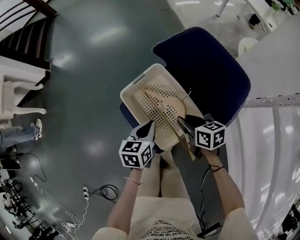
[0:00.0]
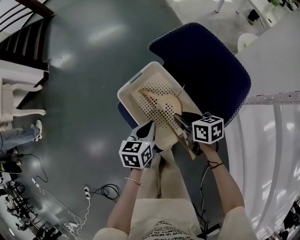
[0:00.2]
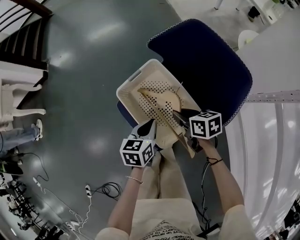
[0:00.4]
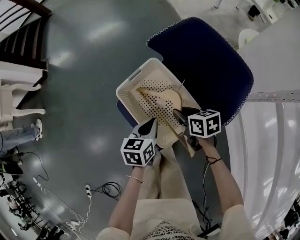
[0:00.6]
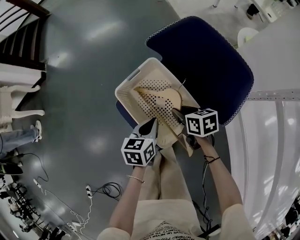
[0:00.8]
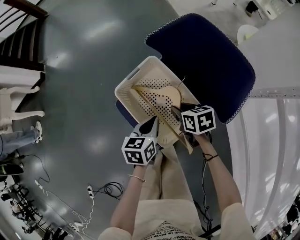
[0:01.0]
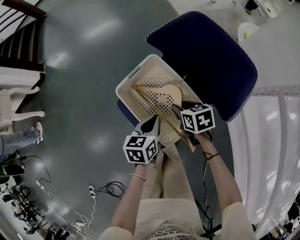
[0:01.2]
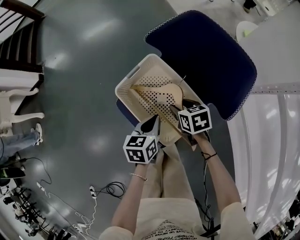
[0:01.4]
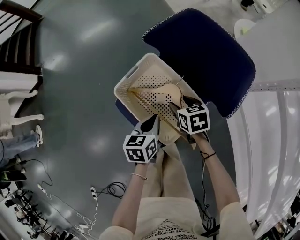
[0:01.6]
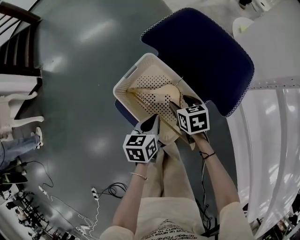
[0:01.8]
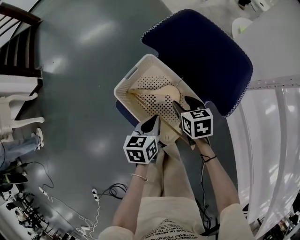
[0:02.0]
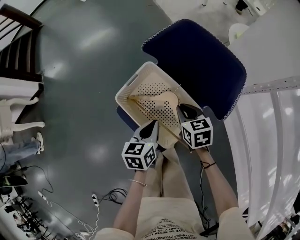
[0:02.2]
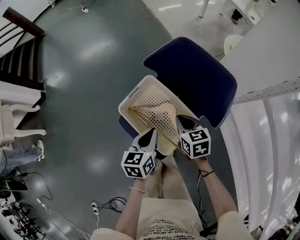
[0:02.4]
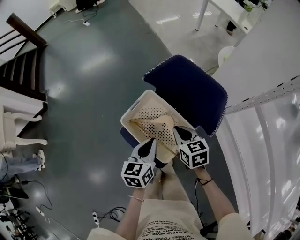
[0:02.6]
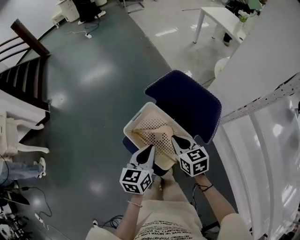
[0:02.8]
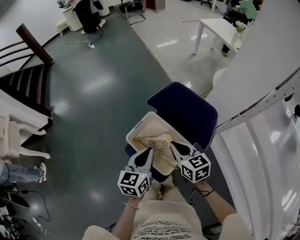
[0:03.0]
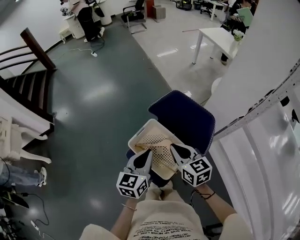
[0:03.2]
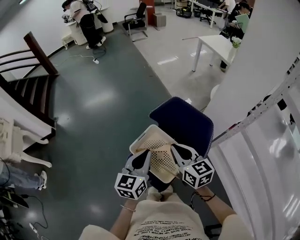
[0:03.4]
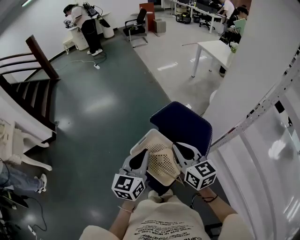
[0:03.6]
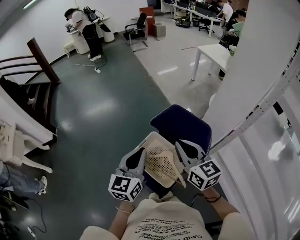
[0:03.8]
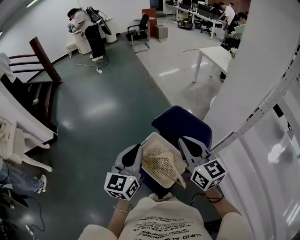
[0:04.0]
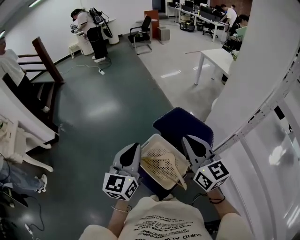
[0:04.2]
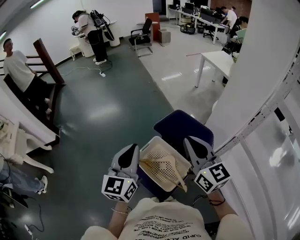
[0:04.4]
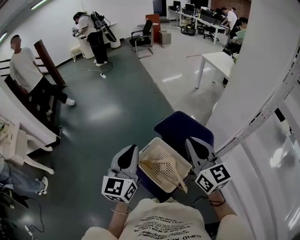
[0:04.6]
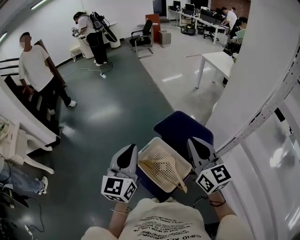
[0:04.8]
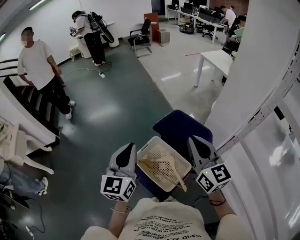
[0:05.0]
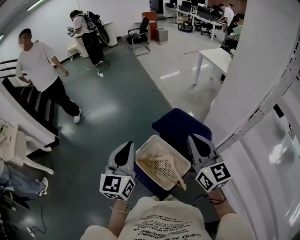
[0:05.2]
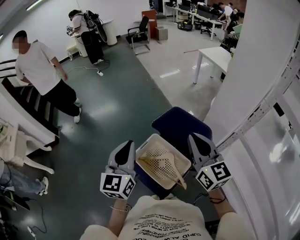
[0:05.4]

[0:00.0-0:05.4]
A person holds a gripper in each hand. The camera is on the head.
0:00.0 to 0:01.4: The right gripper is displaced downward by approximately 5 cm, changes its angle by some 20 degrees, and opens.
0:01.4 to 0:02.8: Both grippers move upward, roughly 20 cm. The right gripper turns by approximately 20 degrees, and closes.
0:02.8 to 0:04.0: The two grippers go about 25 cm upward. The left gripper swivels roughly 30 degrees; the right gripper tips its fingers upward by roughly 30 degrees.
0:04.0 to 0:05.4: The grippers move only a little.

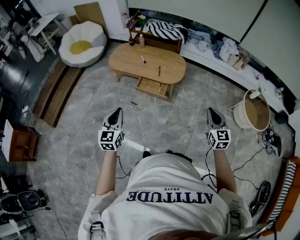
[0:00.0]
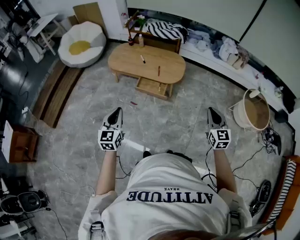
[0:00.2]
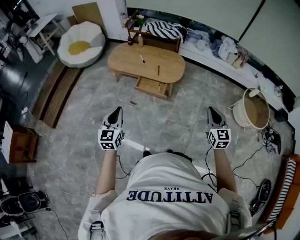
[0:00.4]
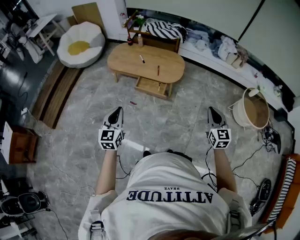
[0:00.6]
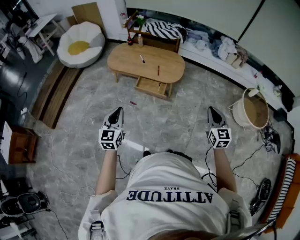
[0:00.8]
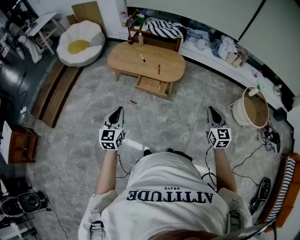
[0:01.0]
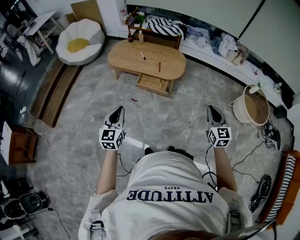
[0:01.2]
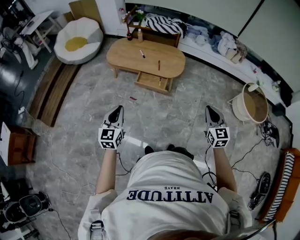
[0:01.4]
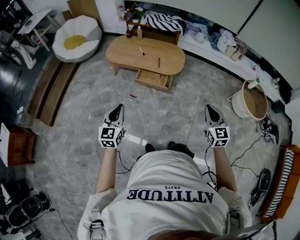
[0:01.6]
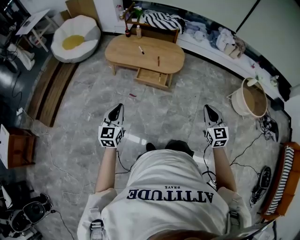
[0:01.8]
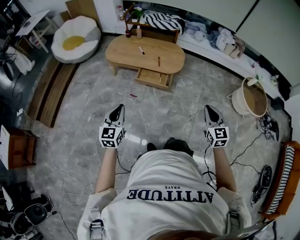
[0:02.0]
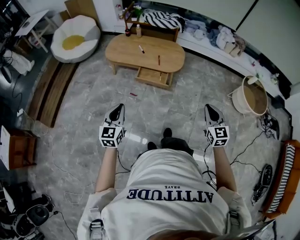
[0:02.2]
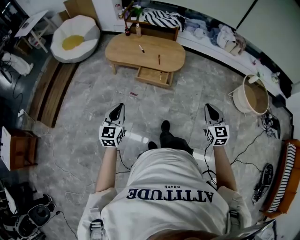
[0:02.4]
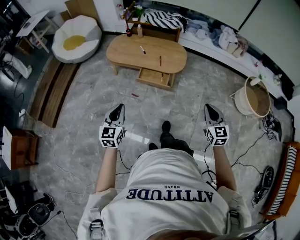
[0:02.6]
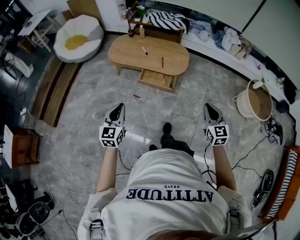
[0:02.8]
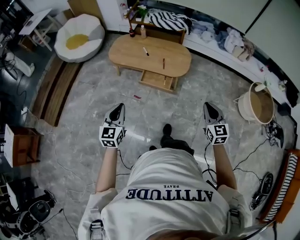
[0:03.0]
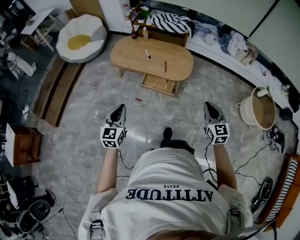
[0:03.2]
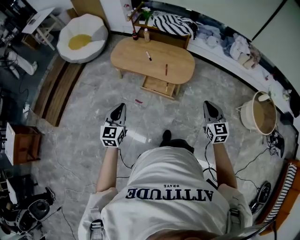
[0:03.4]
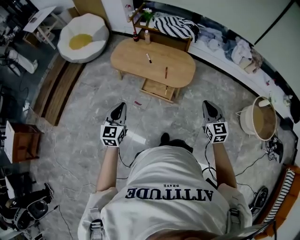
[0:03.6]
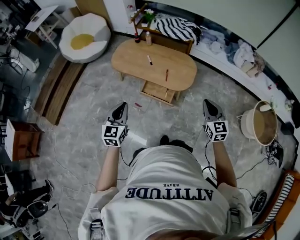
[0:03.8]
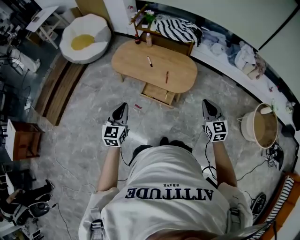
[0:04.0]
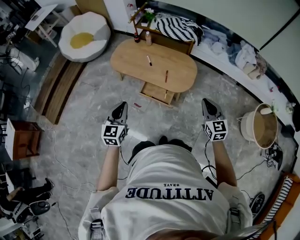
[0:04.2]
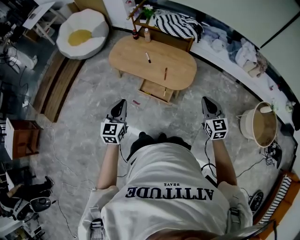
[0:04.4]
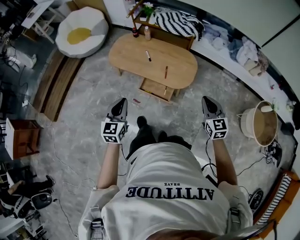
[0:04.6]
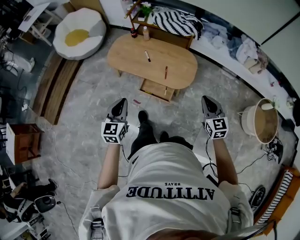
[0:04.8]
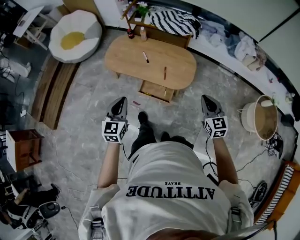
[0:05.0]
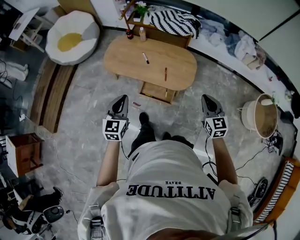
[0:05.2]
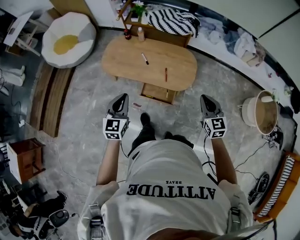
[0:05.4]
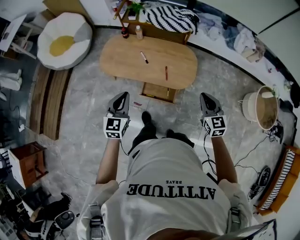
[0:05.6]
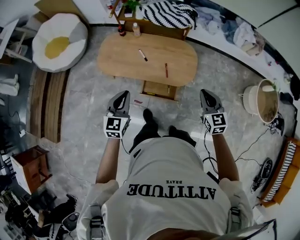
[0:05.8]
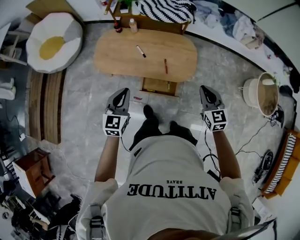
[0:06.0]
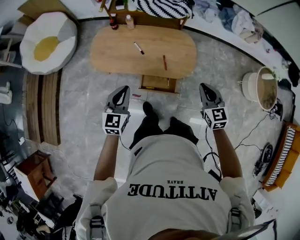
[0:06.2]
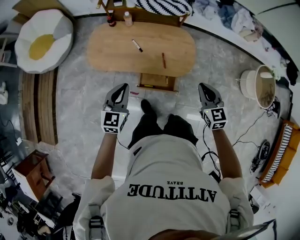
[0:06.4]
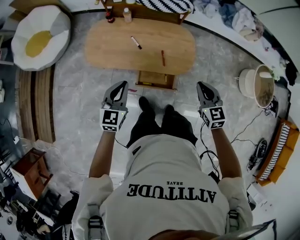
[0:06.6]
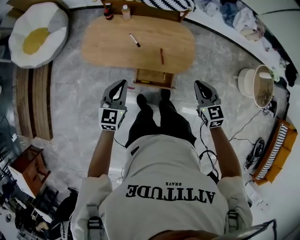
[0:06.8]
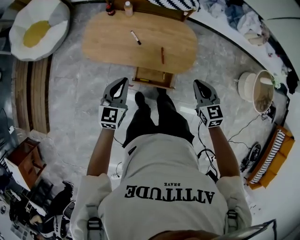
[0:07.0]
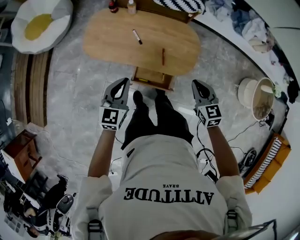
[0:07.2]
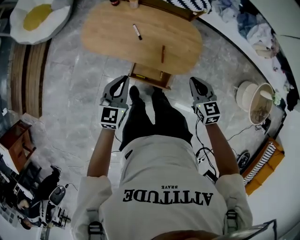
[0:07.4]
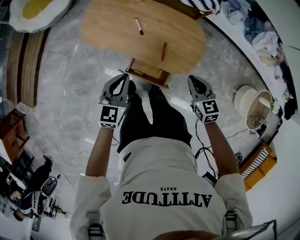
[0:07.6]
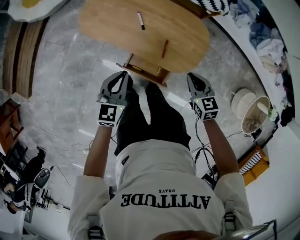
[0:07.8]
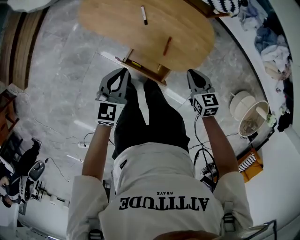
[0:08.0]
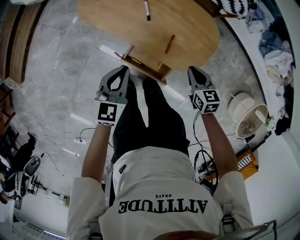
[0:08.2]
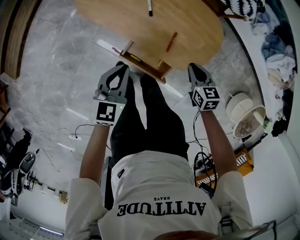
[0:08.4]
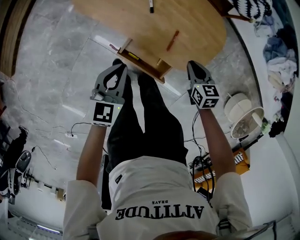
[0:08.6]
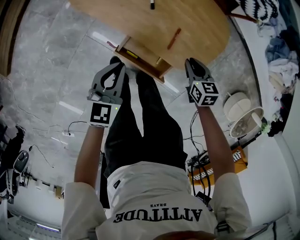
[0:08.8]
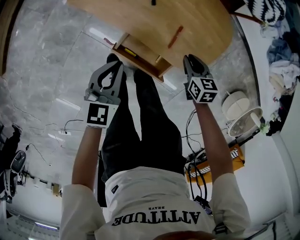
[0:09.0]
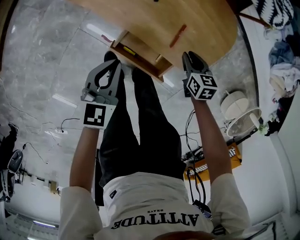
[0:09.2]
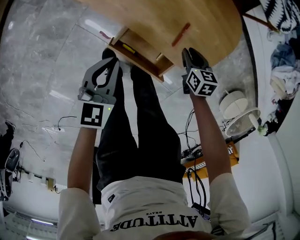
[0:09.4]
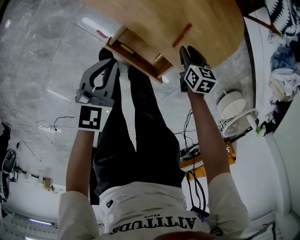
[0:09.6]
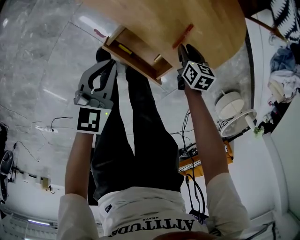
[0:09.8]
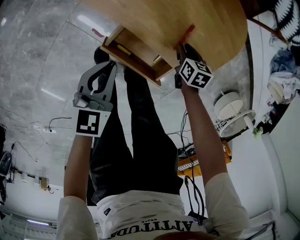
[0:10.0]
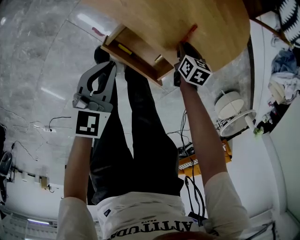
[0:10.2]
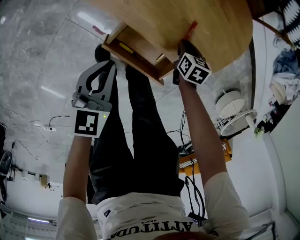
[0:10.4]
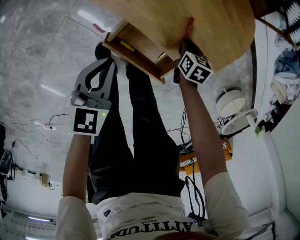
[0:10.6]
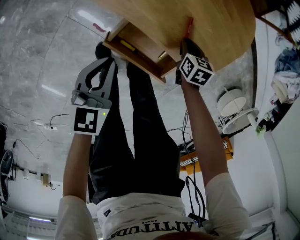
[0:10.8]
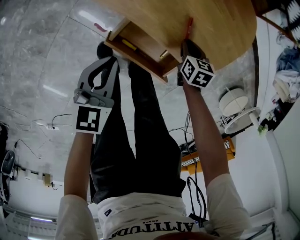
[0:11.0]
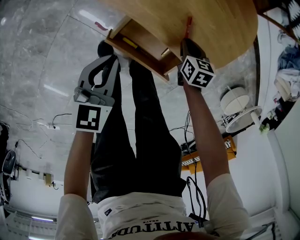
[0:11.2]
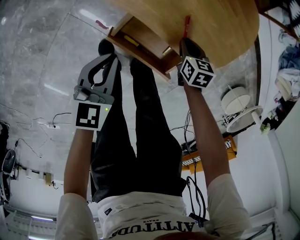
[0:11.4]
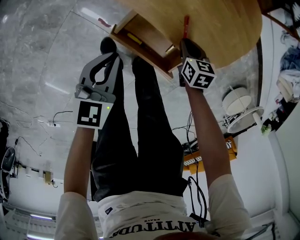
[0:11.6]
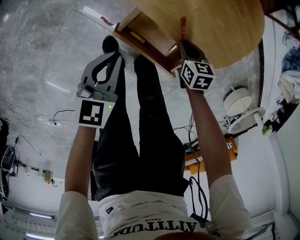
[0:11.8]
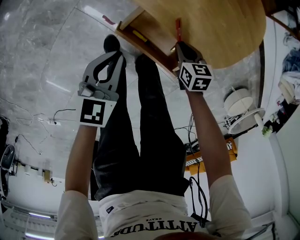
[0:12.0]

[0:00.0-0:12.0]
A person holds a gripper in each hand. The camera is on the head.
0:00.0 to 0:01.6: The right gripper shifts some 10 cm to the left, while the left gripper goes approximately 5 cm to the left.
0:01.6 to 0:03.0: Both grippers travel together forward, about 10 cm.
0:03.0 to 0:04.4: Both grippers move forward, approximately 25 cm.
0:04.4 to 0:06.0: Both grippers move forward and to the left, roughly 25 cm.
0:06.0 to 0:07.6: The two grippers go roughly 15 cm downward and forward. The right gripper turns by about 20 degrees.
0:07.6 to 0:09.0: Both grippers move downward, roughly 25 cm.
0:09.0 to 0:10.4: The two grippers go some 15 cm downward.
0:10.4 to 0:12.0: The right gripper is displaced backward and to the left by some 10 cm. The left gripper moves approximately 5 cm.

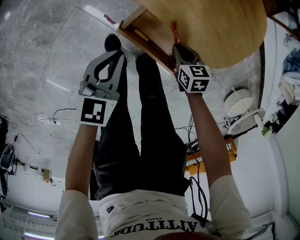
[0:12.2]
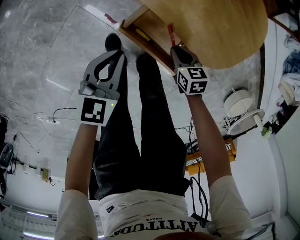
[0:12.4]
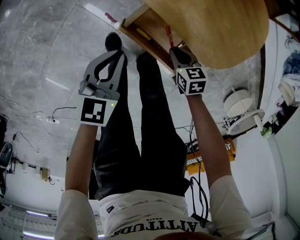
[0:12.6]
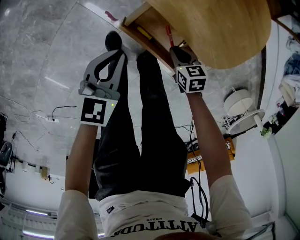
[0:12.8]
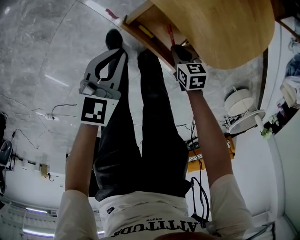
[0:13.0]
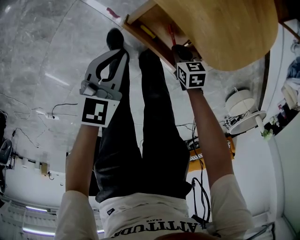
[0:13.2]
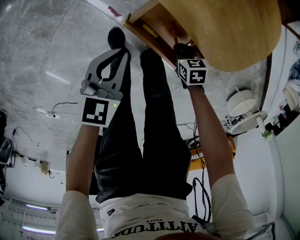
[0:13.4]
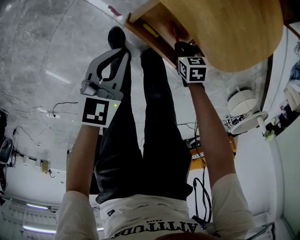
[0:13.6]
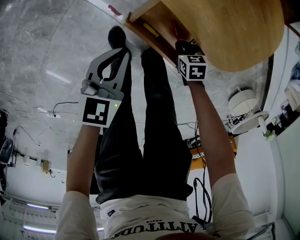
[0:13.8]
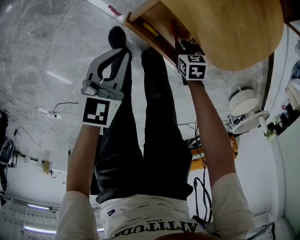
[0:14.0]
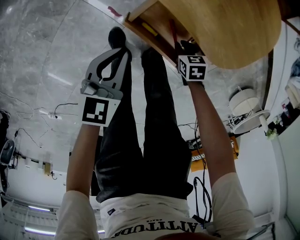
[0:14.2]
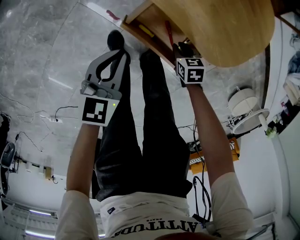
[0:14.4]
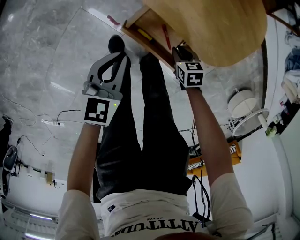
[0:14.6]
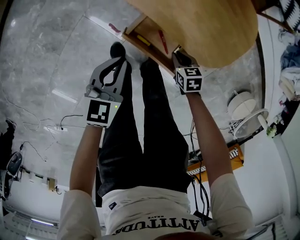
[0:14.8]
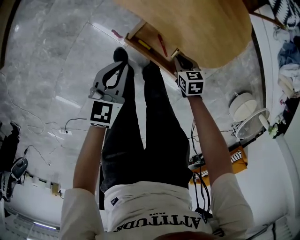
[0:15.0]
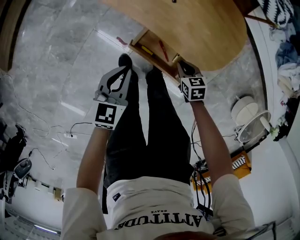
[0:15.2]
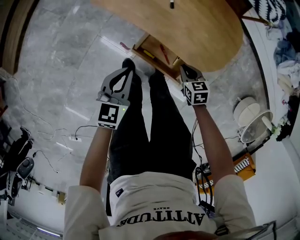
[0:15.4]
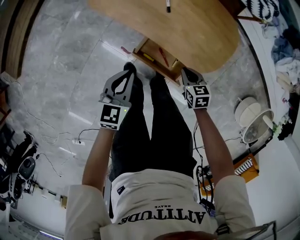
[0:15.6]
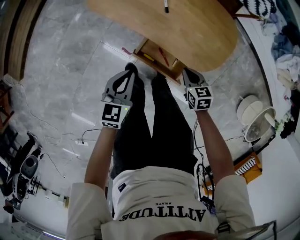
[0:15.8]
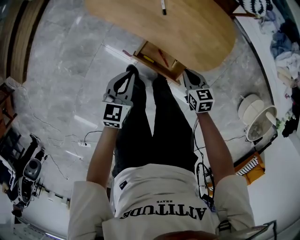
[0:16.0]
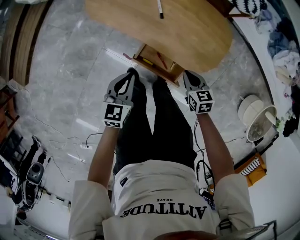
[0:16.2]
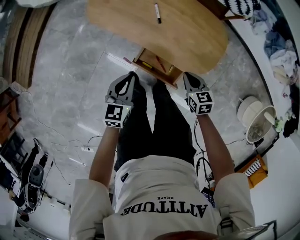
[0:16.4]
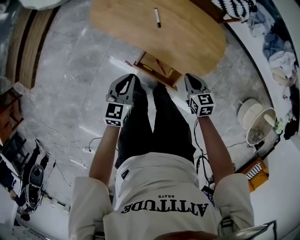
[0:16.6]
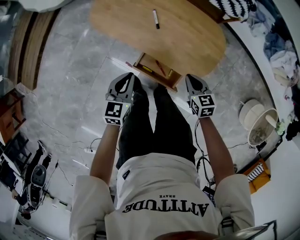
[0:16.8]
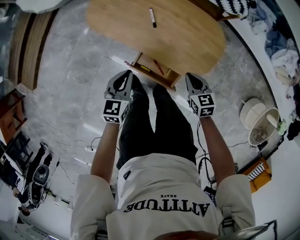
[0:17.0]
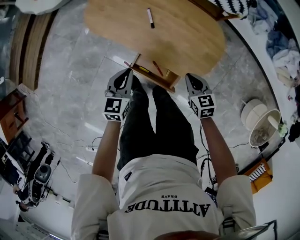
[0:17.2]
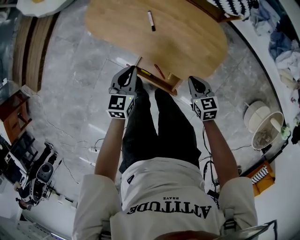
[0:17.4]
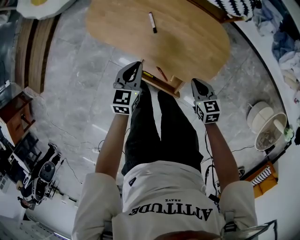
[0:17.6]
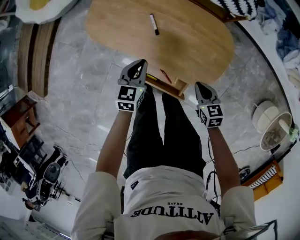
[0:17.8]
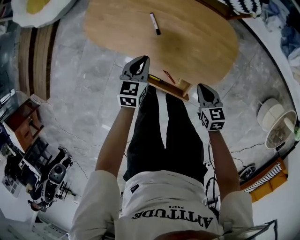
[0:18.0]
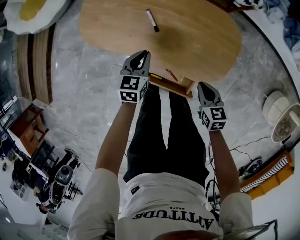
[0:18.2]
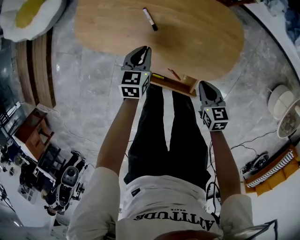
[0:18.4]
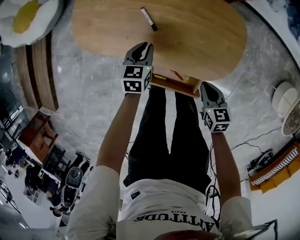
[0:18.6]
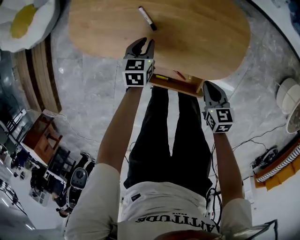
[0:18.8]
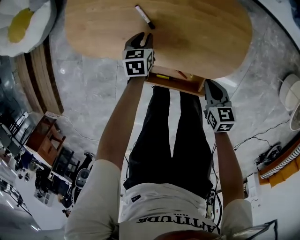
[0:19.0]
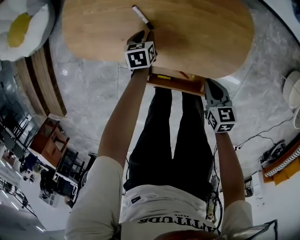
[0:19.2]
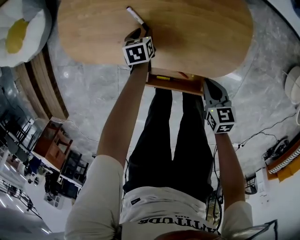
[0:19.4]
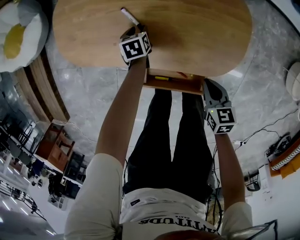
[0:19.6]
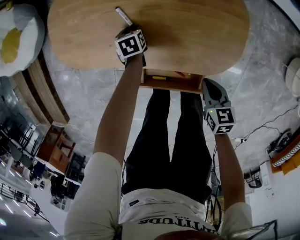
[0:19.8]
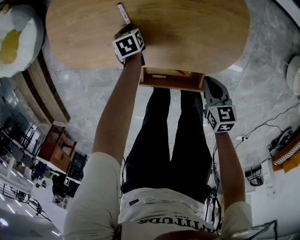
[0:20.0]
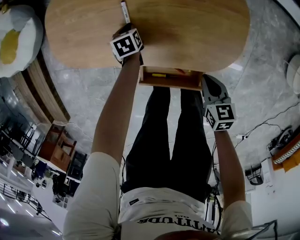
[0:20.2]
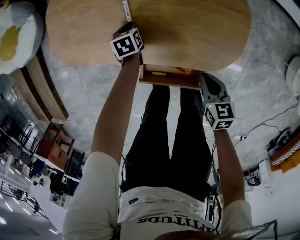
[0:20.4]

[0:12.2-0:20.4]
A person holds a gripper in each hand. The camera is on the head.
0:12.2 to 0:13.8: The right gripper goes approximately 10 cm downward. Meanwhile the left gripper ends up approximately 5 cm from where it was.
0:13.8 to 0:15.4: Both grippers travel together upward, some 25 cm.
0:15.4 to 0:17.2: The left gripper heads upward, to the right and forward, covering about 15 cm. Meanwhile the right gripper is displaced upward and to the right by roughly 20 cm.
0:17.2 to 0:18.8: The right gripper is displaced downward by about 10 cm, and swivels approximately 20 degrees. Meanwhile the left gripper moves downward and forward, roughly 30 cm, and changes its angle by approximately 20 degrees.
0:18.8 to 0:20.4: The left gripper is displaced downward by approximately 15 cm; the right gripper changes place by about 5 cm.
